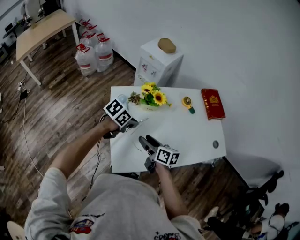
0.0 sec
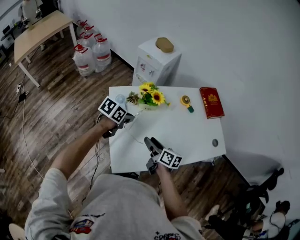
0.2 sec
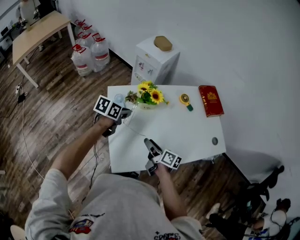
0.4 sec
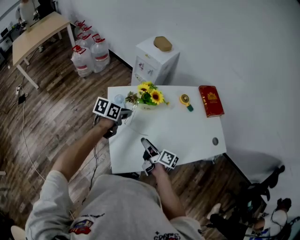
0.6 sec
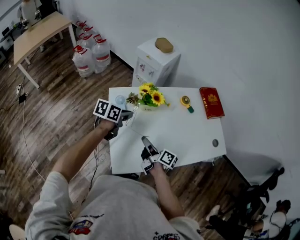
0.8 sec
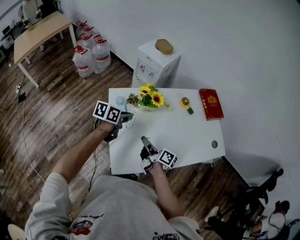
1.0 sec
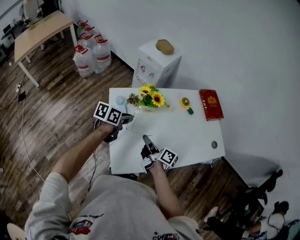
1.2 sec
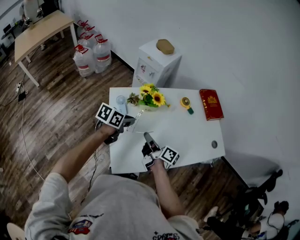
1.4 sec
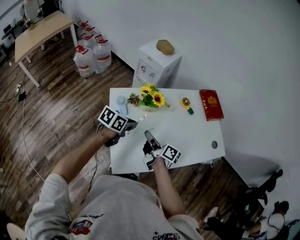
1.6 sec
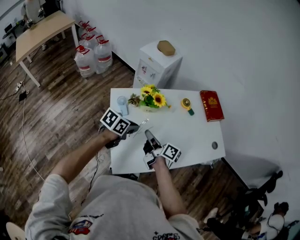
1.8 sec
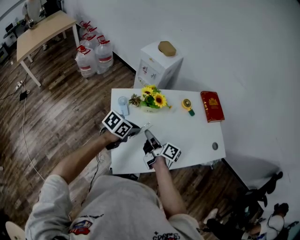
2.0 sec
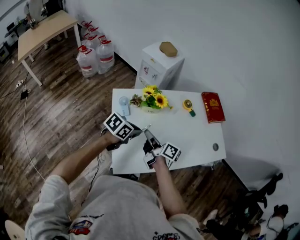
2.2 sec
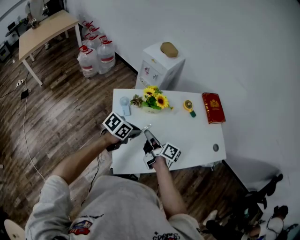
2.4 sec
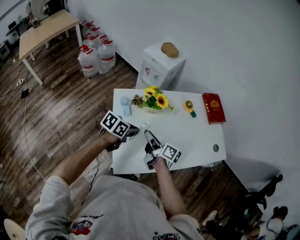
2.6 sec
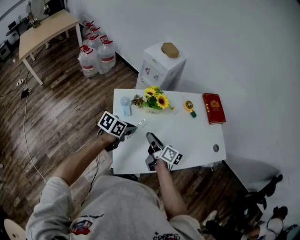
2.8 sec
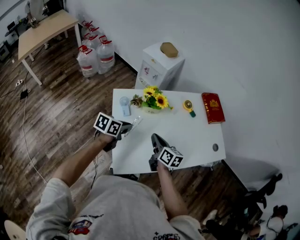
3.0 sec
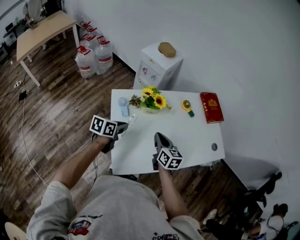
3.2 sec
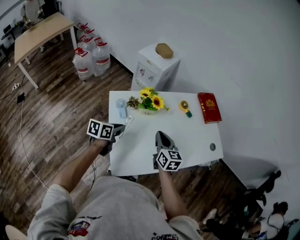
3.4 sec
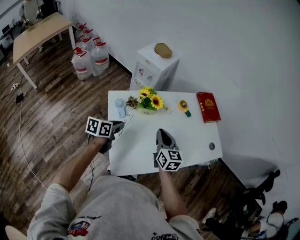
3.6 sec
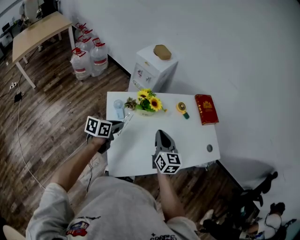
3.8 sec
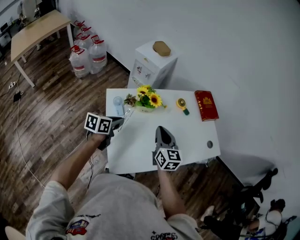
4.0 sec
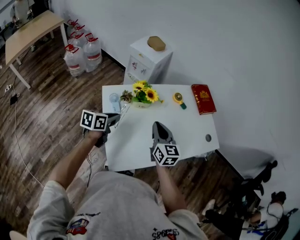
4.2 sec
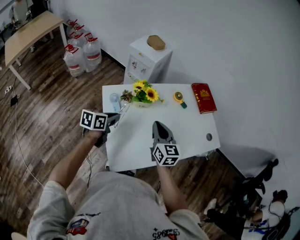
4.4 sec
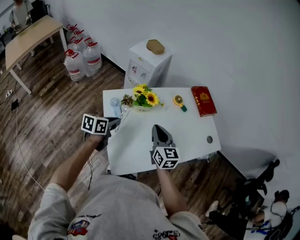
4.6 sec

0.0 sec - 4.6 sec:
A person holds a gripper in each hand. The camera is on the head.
0.0 sec - 1.6 sec: The right gripper rotates roughly 30 degrees, and closes.
1.6 sec - 3.0 sec: The right gripper changes its angle by roughly 30 degrees, and opens, then closes once more.
3.0 sec - 4.6 sec: The right gripper heads upward, covering some 10 cm, and turns by roughly 30 degrees.

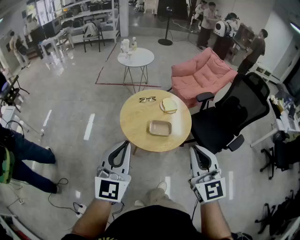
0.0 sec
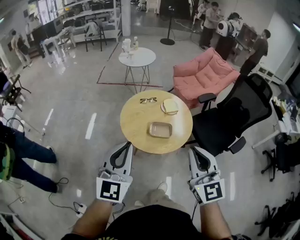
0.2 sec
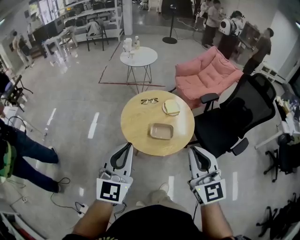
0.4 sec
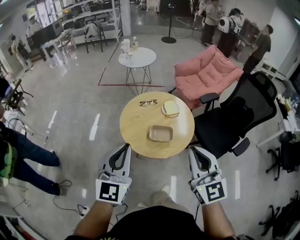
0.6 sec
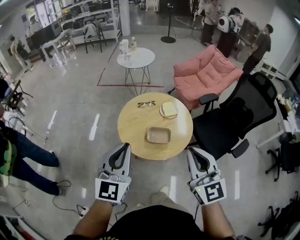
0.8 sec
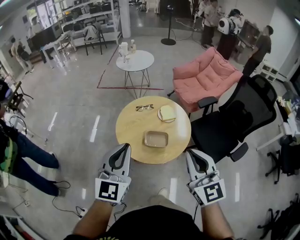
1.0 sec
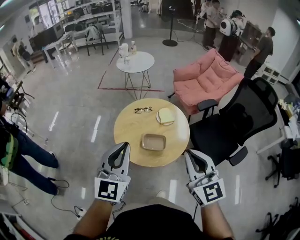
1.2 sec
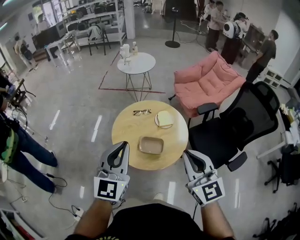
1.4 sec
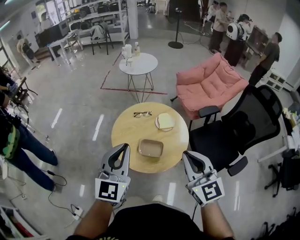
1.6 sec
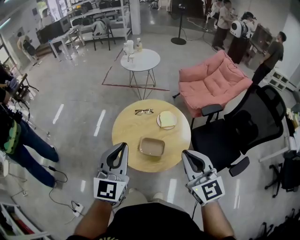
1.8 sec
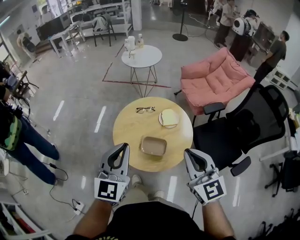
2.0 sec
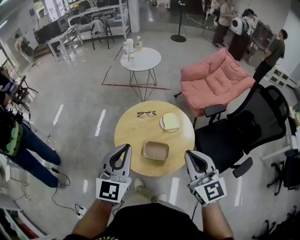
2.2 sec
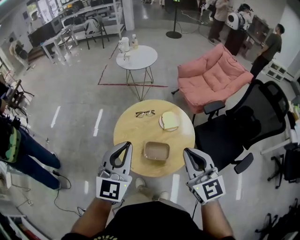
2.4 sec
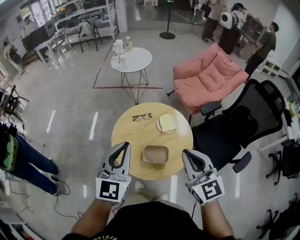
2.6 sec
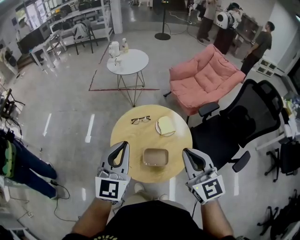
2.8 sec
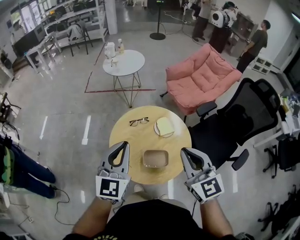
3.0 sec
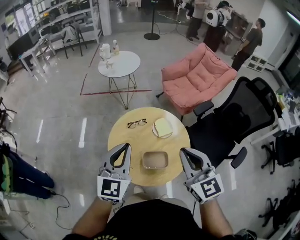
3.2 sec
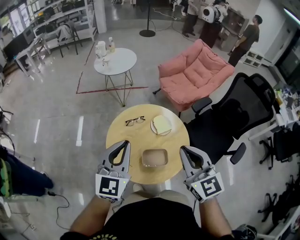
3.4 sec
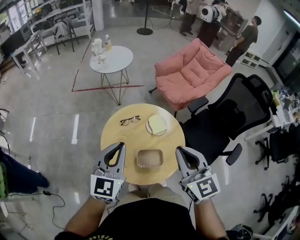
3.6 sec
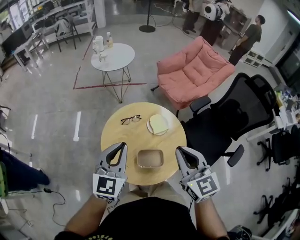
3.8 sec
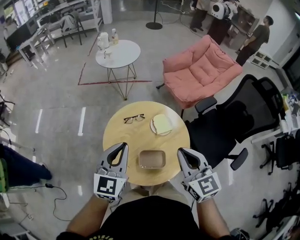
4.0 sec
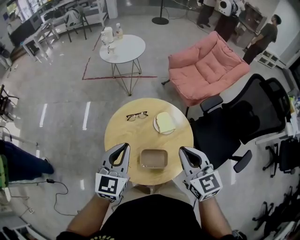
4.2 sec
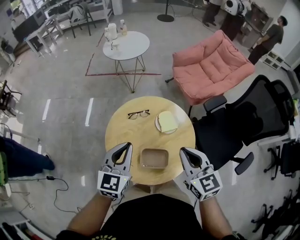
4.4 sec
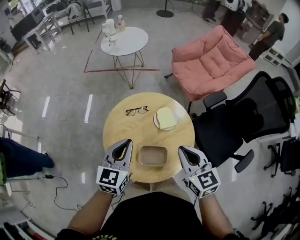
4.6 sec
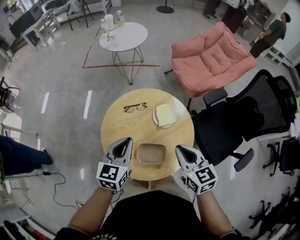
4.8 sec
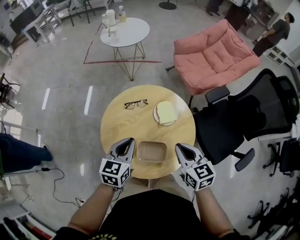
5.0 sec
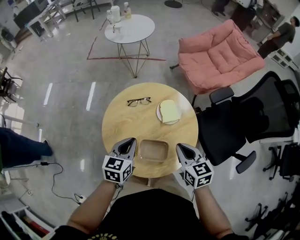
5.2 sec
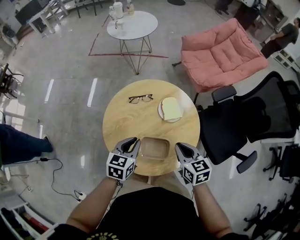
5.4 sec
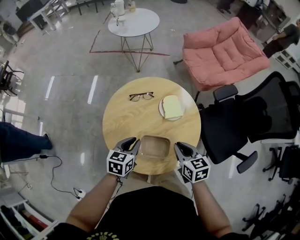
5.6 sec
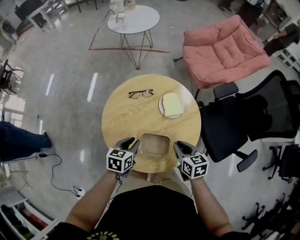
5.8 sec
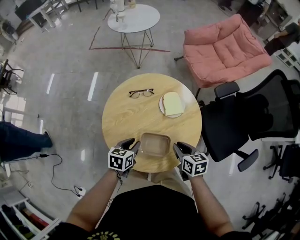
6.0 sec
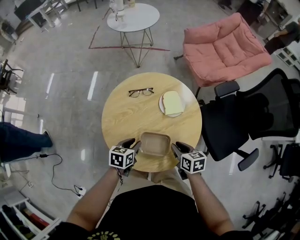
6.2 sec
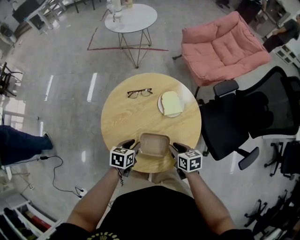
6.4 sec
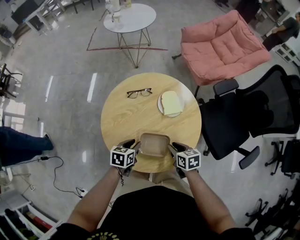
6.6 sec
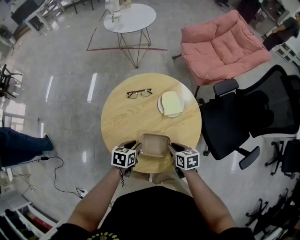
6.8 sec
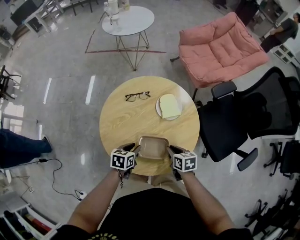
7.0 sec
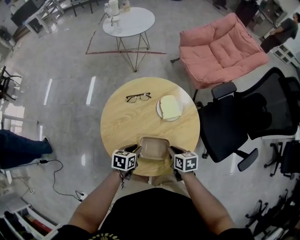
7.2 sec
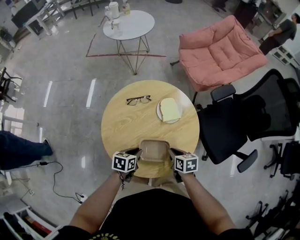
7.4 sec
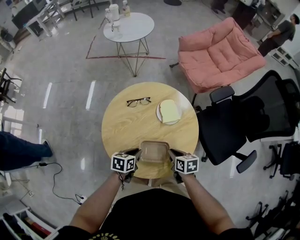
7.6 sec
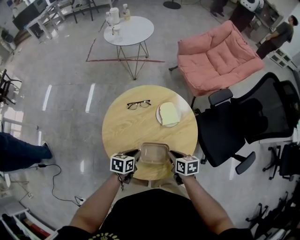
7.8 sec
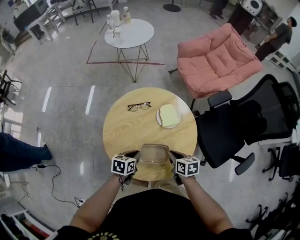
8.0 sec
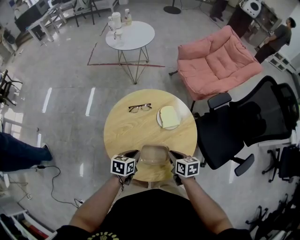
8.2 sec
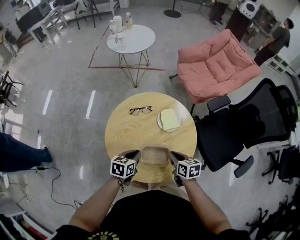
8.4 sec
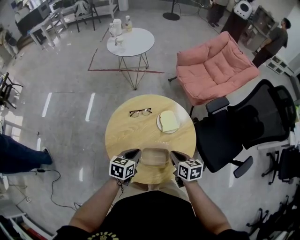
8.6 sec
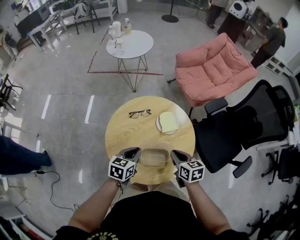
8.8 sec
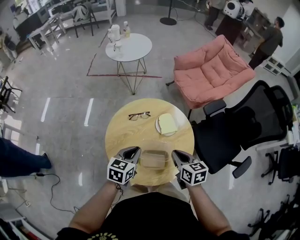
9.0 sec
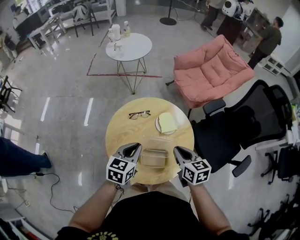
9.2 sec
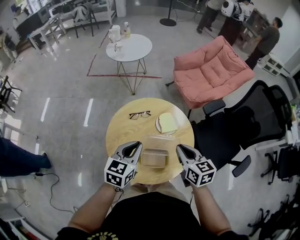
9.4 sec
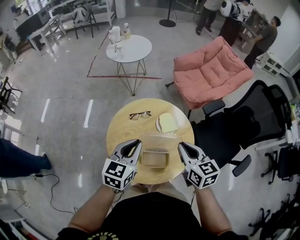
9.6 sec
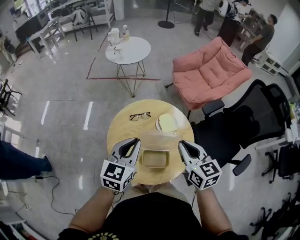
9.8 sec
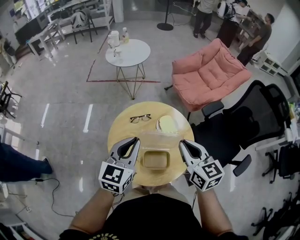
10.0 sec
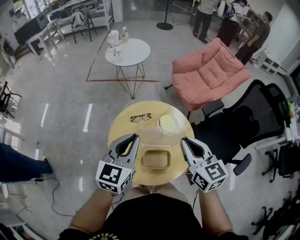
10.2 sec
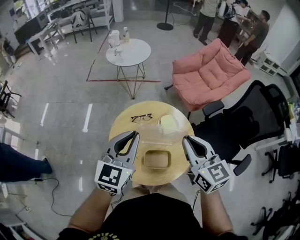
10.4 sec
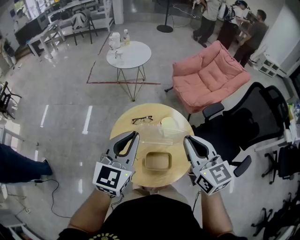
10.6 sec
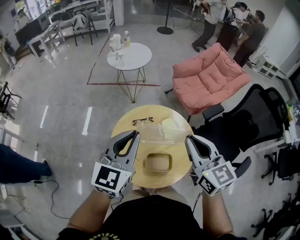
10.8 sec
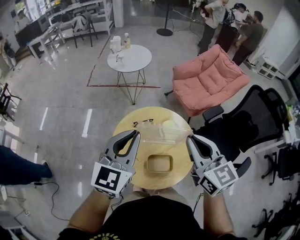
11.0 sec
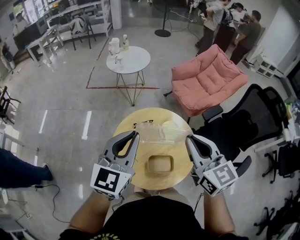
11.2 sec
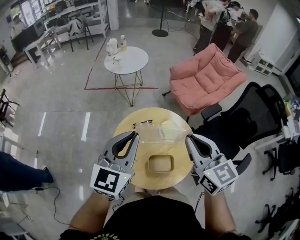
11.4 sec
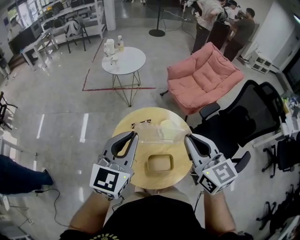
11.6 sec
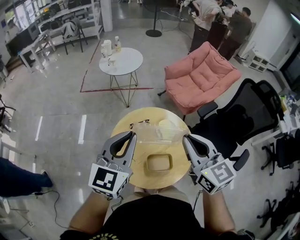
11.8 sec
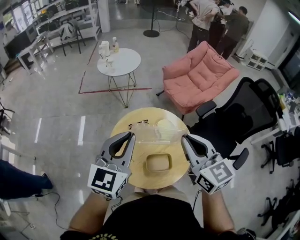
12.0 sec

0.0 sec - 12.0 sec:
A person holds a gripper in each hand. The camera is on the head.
0.0 sec - 1.6 sec: The grippers both shift forward and to the right by roughly 20 cm.
1.6 sec - 3.0 sec: The left gripper moves forward, roughly 15 cm; the right gripper is displaced forward and to the left by approximately 15 cm.
3.0 sec - 4.4 sec: Both grippers travel together downward and forward, some 15 cm.
4.4 sec - 6.0 sec: The grippers both shift downward by approximately 25 cm. The right gripper turns by about 30 degrees. The left gripper rotates roughly 40 degrees, and opens up.
6.0 sec - 7.6 sec: The right gripper goes roughly 5 cm downward.
7.6 sec - 9.0 sec: The two grippers go some 15 cm upward. The left gripper rotates roughly 30 degrees.
9.0 sec - 10.4 sec: Both grippers move upward, about 20 cm. The left gripper rotates approximately 30 degrees, while the right gripper rotates some 30 degrees.
10.4 sec - 12.0 sec: The left gripper shifts by roughly 5 cm; the right gripper moves about 5 cm.

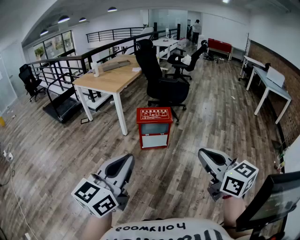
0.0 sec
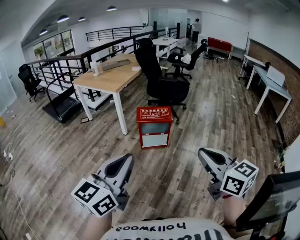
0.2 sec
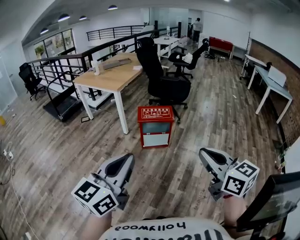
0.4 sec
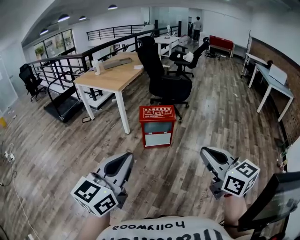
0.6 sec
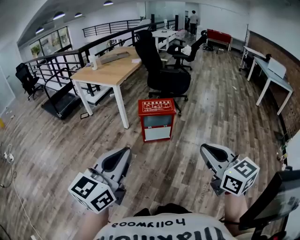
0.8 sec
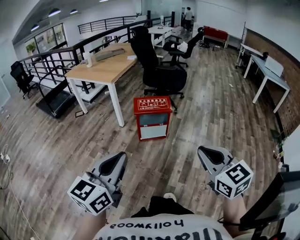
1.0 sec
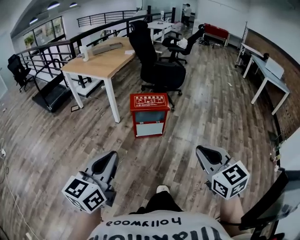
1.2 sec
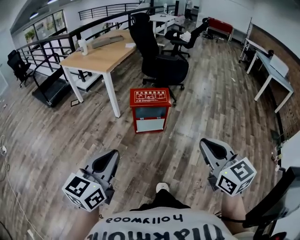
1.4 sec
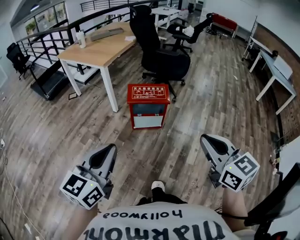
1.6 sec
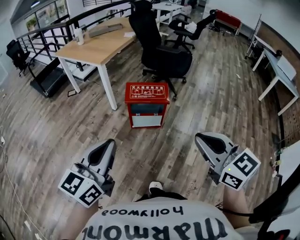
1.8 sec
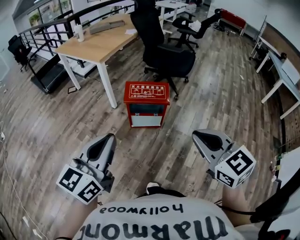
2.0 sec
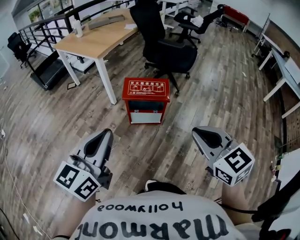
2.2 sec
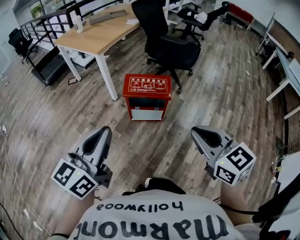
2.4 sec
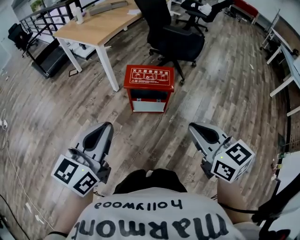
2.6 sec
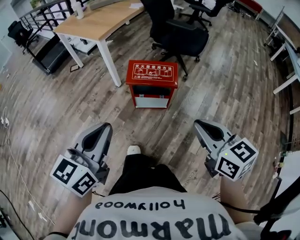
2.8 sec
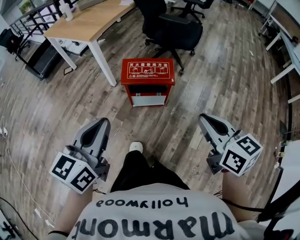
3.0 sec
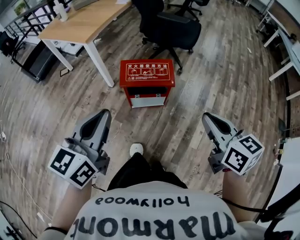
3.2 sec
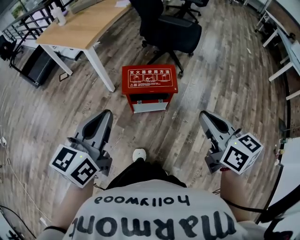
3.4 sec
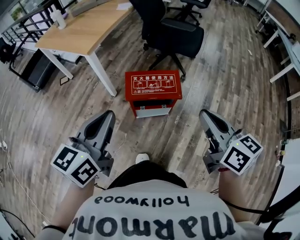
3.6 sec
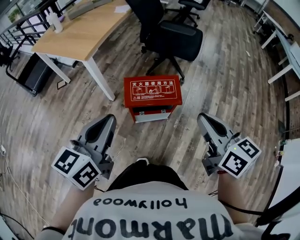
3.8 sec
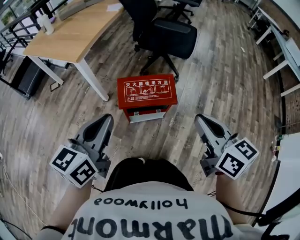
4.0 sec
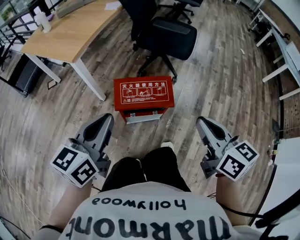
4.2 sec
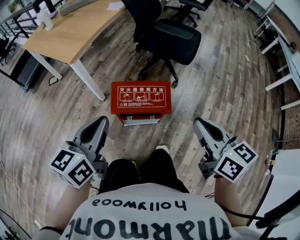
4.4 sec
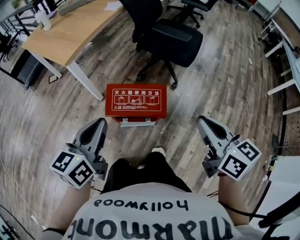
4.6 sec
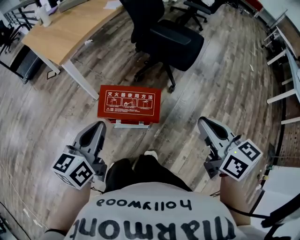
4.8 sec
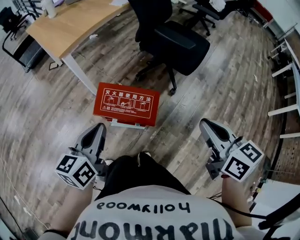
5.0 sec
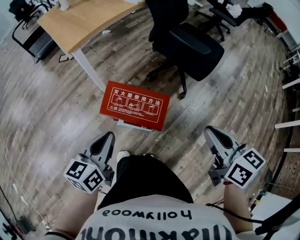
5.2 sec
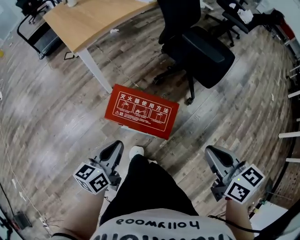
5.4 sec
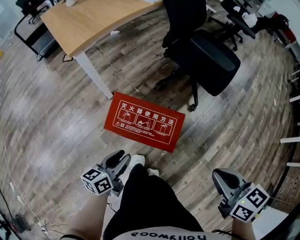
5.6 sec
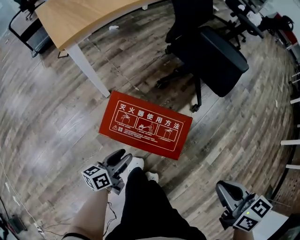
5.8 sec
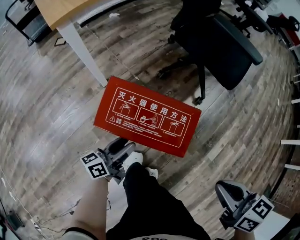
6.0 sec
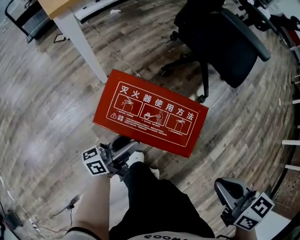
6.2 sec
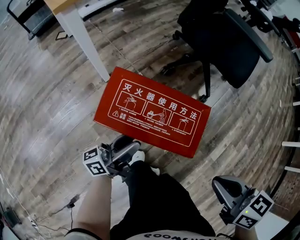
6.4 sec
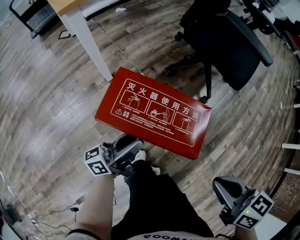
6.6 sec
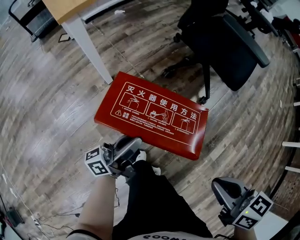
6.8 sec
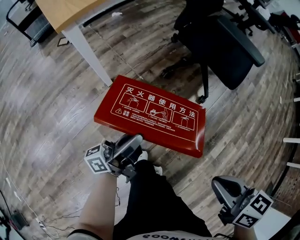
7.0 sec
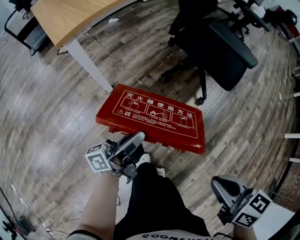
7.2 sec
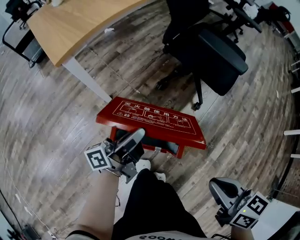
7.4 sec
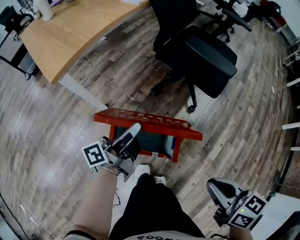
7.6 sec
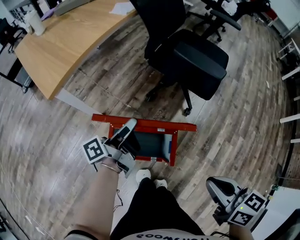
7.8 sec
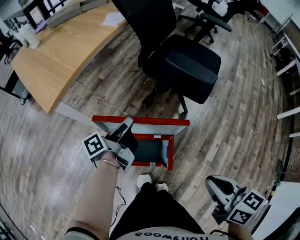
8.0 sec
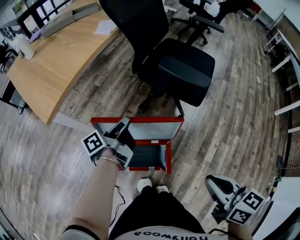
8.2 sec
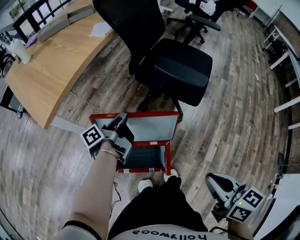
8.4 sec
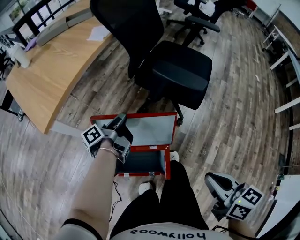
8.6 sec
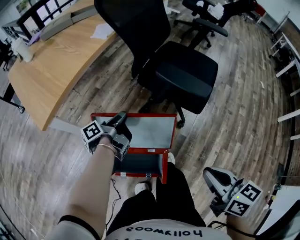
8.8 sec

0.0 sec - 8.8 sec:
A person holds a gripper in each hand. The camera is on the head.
0.0 sec - 1.4 sec: The grippers both shift forward and downward by about 15 cm.
1.4 sec - 3.0 sec: The two grippers go roughly 25 cm forward. The right gripper rotates approximately 20 degrees.
3.0 sec - 4.4 sec: The grippers both shift forward by about 20 cm.
4.4 sec - 5.8 sec: The left gripper travels downward by approximately 35 cm, changes its angle by about 30 degrees, and opens up, while the right gripper is displaced downward, to the right and forward by roughly 20 cm, and changes its angle by roughly 30 degrees.
5.8 sec - 7.4 sec: The right gripper goes approximately 5 cm to the left, and travels downward and back again, some 10 cm each way. Meanwhile the left gripper travels upward and forward by approximately 20 cm, angles its fingers upward, by roughly 30 degrees, and closes its fingers.
7.4 sec - 8.8 sec: The left gripper goes roughly 25 cm forward, and rotates about 40 degrees; the right gripper shifts approximately 15 cm forward and to the right.
